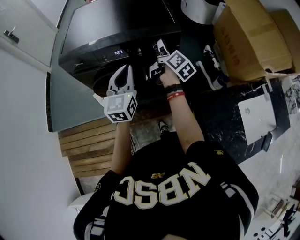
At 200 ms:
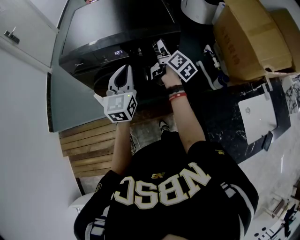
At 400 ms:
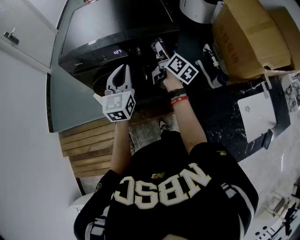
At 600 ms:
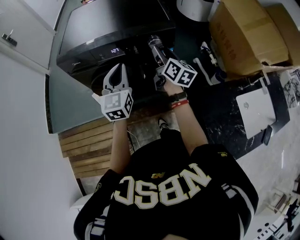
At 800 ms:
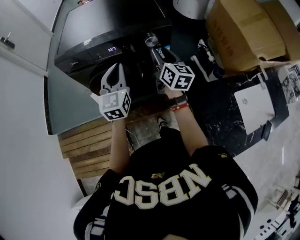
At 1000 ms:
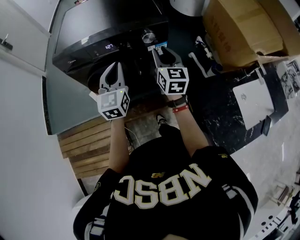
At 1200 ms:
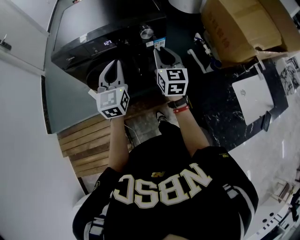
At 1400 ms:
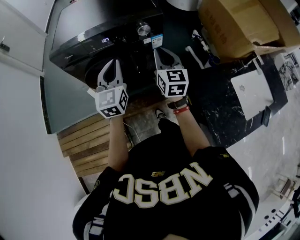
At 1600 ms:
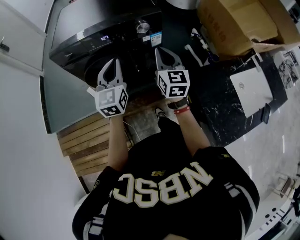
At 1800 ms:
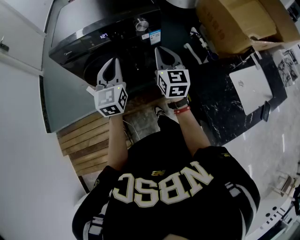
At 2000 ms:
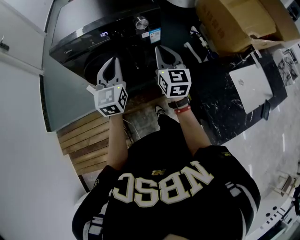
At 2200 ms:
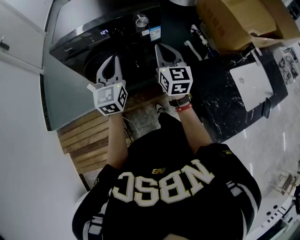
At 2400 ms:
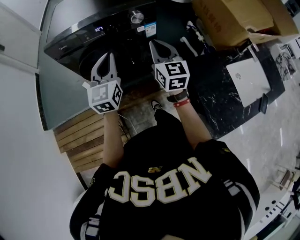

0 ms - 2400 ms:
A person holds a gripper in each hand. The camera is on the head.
0 ms - 1200 ms: The right gripper heads backward, covering some 15 cm, twists roughly 60 degrees counterclockwise, seen from behind, and closes up.
1200 ms - 2400 ms: The right gripper goes about 5 cm backward.

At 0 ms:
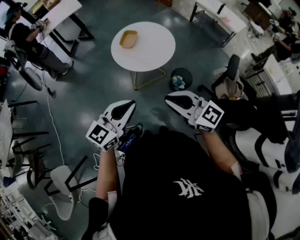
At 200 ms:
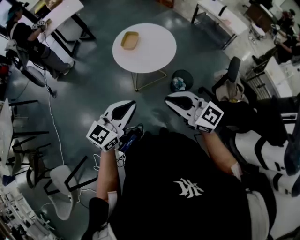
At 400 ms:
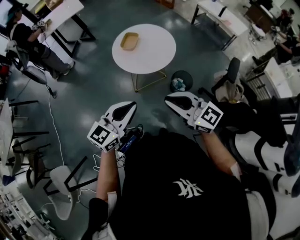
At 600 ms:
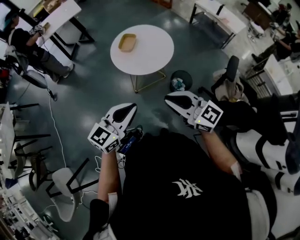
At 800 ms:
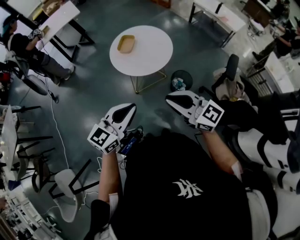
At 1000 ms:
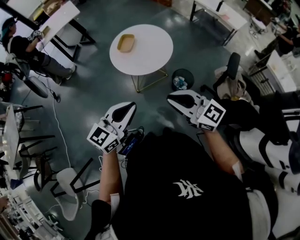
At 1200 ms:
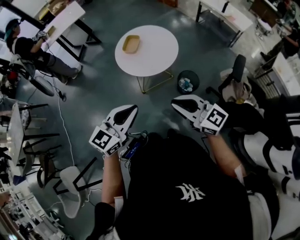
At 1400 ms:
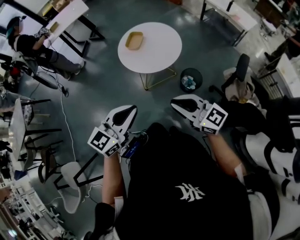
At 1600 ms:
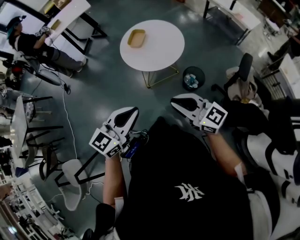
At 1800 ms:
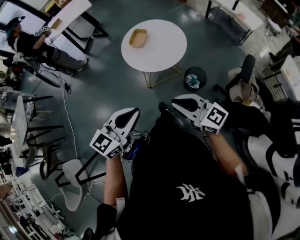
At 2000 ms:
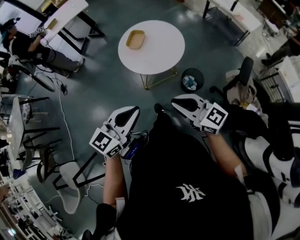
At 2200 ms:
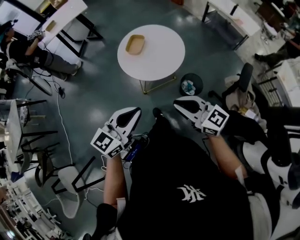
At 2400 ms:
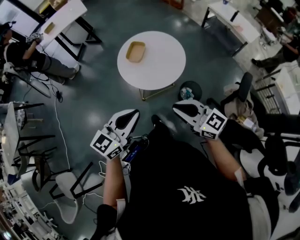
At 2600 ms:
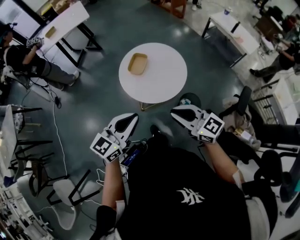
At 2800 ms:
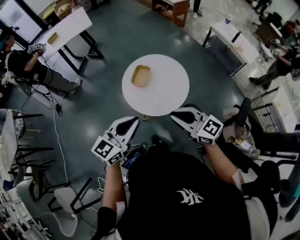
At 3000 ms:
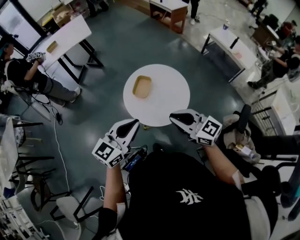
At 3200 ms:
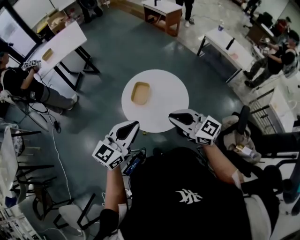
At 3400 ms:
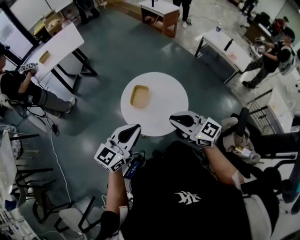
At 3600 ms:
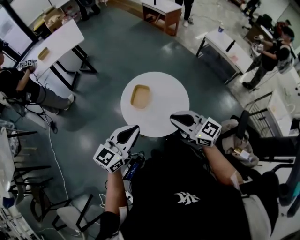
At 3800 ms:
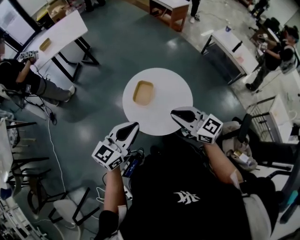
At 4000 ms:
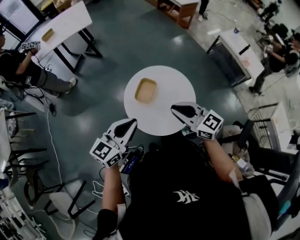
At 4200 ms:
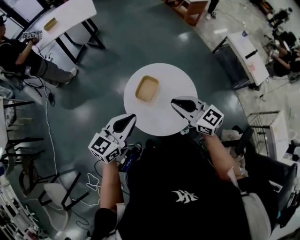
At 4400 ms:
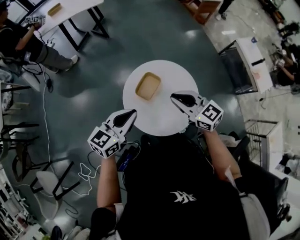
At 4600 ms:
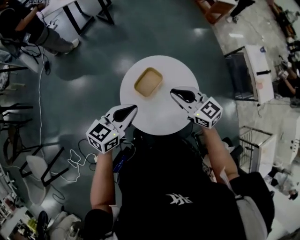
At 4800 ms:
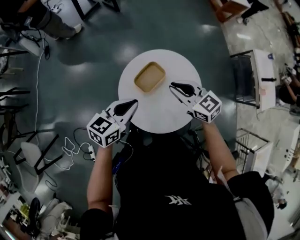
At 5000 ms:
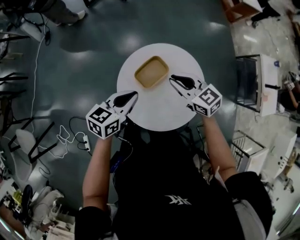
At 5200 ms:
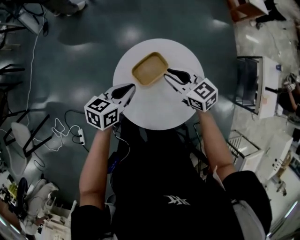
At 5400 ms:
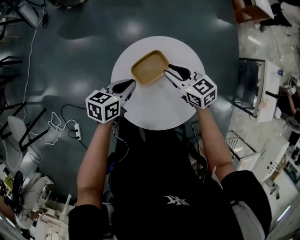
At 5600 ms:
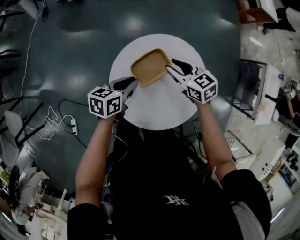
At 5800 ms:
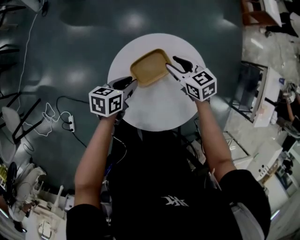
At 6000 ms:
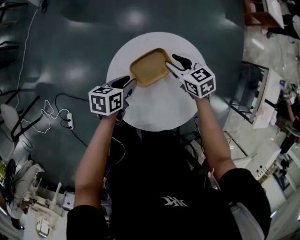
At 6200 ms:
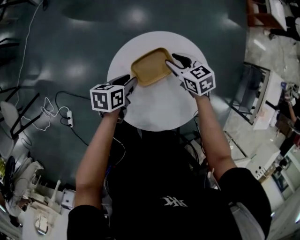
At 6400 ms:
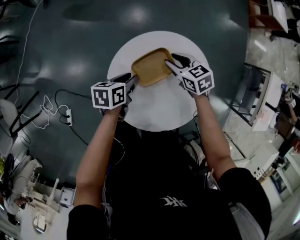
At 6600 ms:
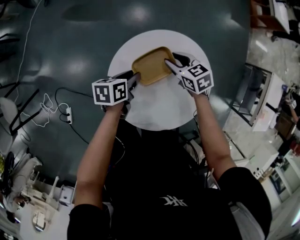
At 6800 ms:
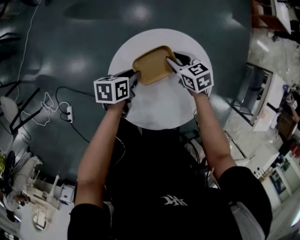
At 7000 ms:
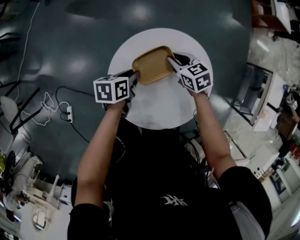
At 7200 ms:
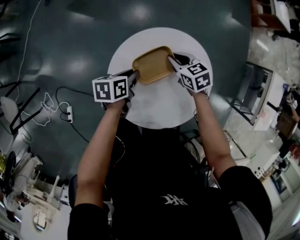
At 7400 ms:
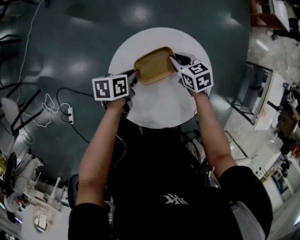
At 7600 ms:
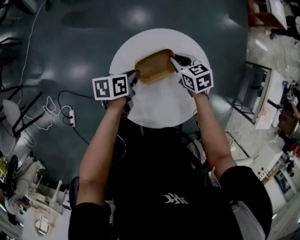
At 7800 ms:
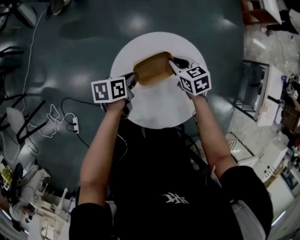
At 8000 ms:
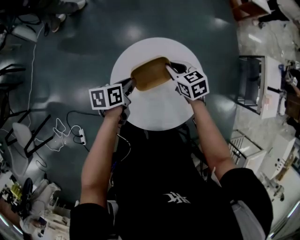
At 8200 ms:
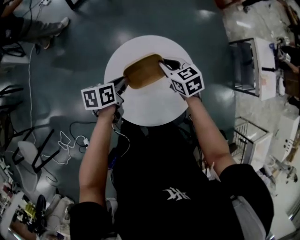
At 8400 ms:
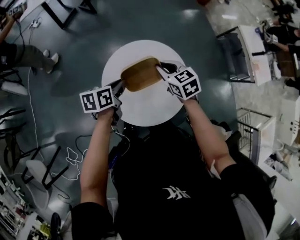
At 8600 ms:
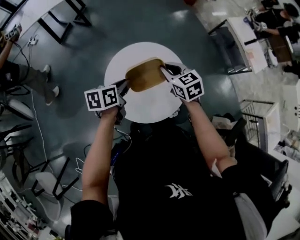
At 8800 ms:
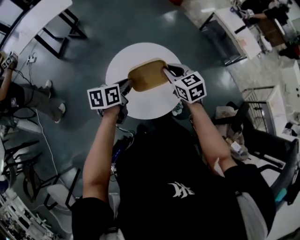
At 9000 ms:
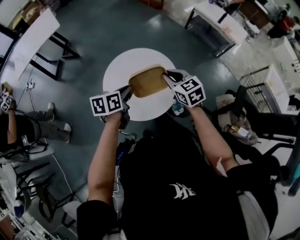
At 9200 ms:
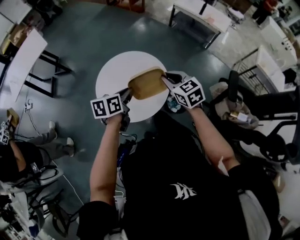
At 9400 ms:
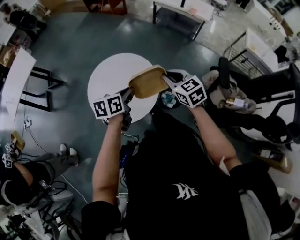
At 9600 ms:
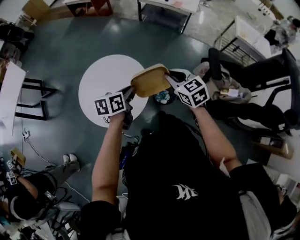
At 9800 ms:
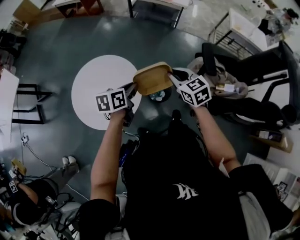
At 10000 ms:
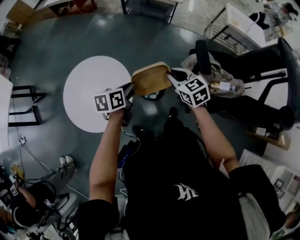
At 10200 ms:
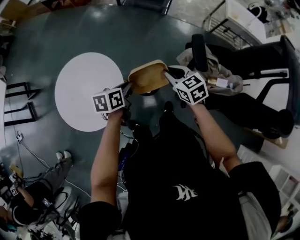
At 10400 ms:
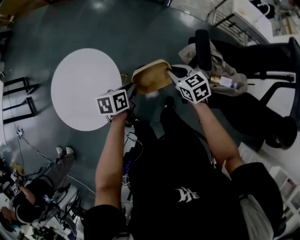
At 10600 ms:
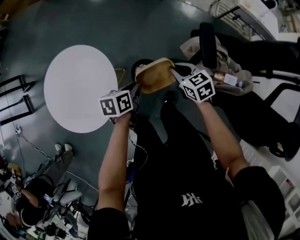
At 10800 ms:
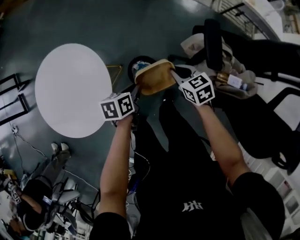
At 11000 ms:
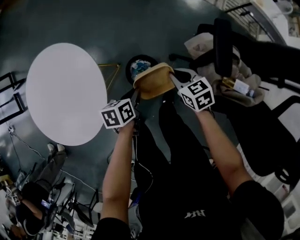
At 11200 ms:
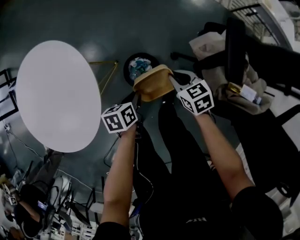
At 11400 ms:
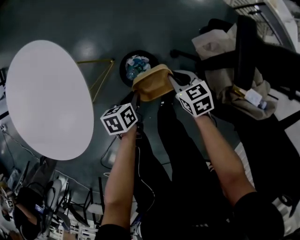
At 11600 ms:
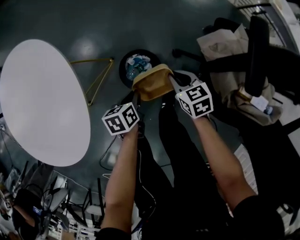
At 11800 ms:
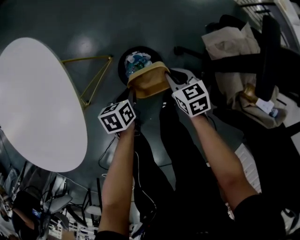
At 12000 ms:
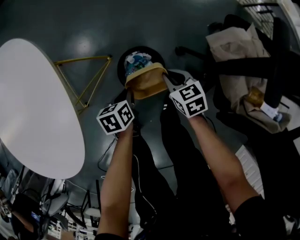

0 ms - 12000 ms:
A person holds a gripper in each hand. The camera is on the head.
0 ms - 1600 ms: The grippers make only small movements.
1600 ms - 3000 ms: The two grippers go approximately 25 cm forward.
3000 ms - 4400 ms: The left gripper travels forward and downward by some 15 cm, and turns by approximately 20 degrees. Meanwhile the right gripper moves forward, roughly 20 cm.
4400 ms - 6000 ms: The right gripper goes roughly 30 cm downward and forward, turns by some 30 degrees, and opens up. The left gripper heads downward, covering approximately 25 cm, angles its fingers downward, by approximately 30 degrees, and opens up.
6000 ms - 7600 ms: The right gripper closes its fingers; the left gripper closes up.
7600 ms - 9000 ms: Both grippers travel together upward, roughly 20 cm. The right gripper changes its angle by roughly 50 degrees; the left gripper rolls clockwise, seen from behind, by some 40 degrees.
9000 ms - 10400 ms: The right gripper shifts by about 35 cm, and changes its angle by approximately 30 degrees. The left gripper moves some 35 cm, and turns by approximately 30 degrees.
10400 ms - 12000 ms: The two grippers go roughly 40 cm downward. The left gripper changes its angle by roughly 20 degrees.

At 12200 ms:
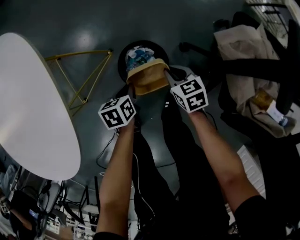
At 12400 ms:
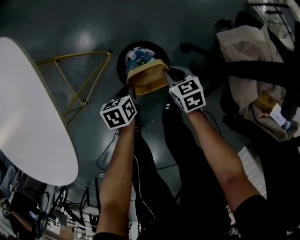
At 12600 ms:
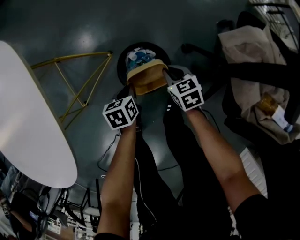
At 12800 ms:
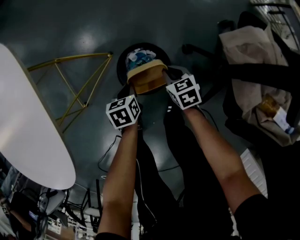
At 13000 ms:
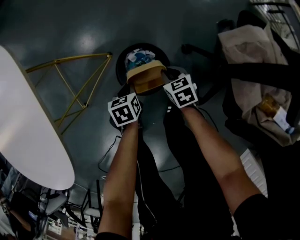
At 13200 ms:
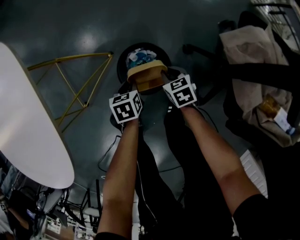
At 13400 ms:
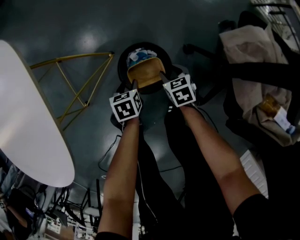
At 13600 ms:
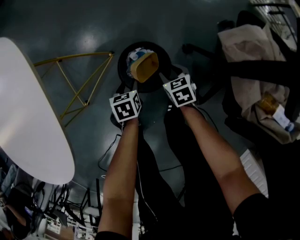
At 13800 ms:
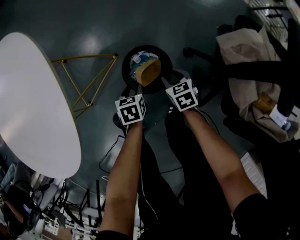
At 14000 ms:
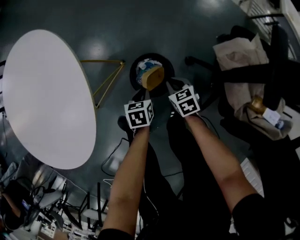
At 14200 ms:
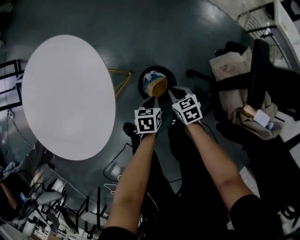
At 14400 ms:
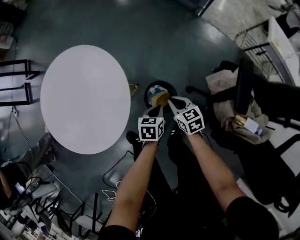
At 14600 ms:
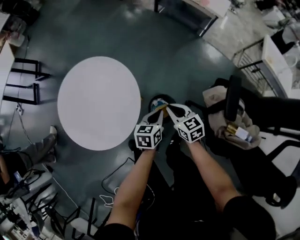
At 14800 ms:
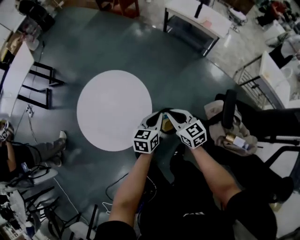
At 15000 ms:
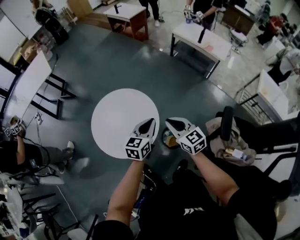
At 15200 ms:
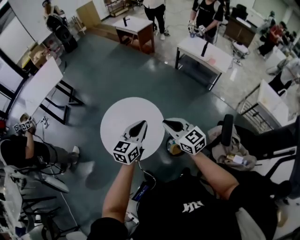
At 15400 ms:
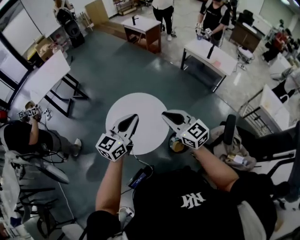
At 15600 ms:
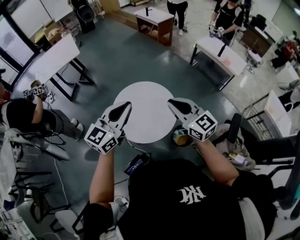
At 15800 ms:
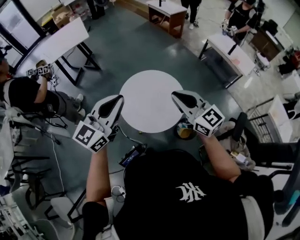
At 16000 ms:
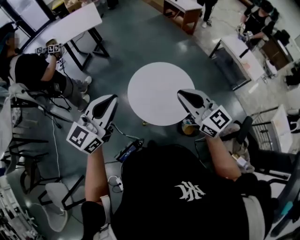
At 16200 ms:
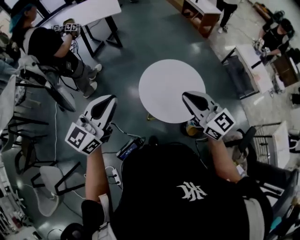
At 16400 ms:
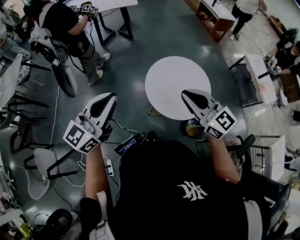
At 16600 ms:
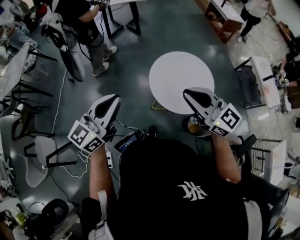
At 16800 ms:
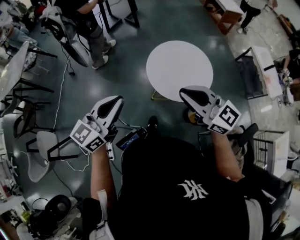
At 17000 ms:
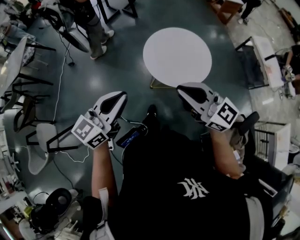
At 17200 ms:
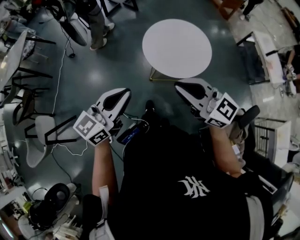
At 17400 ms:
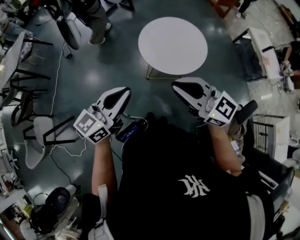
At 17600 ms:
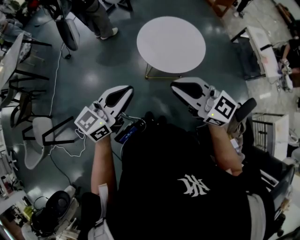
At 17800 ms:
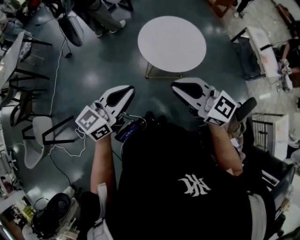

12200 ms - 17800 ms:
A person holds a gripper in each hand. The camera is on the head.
12200 ms - 13600 ms: Both grippers move downward, roughly 10 cm. The right gripper opens its fingers. Meanwhile the left gripper opens.
13600 ms - 15000 ms: Both grippers move upward, some 60 cm. The left gripper tilts its fingers some 50 degrees upward, and closes its fingers. The right gripper angles its fingers upward, by about 40 degrees, and closes its fingers.
15000 ms - 16400 ms: The left gripper moves roughly 50 cm, and rotates some 40 degrees, while the right gripper changes place by approximately 35 cm, and turns by some 40 degrees.
16400 ms - 17800 ms: The grippers both shift backward by approximately 20 cm.

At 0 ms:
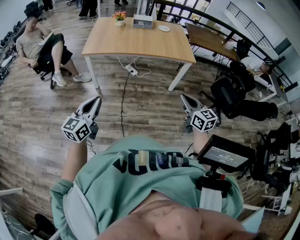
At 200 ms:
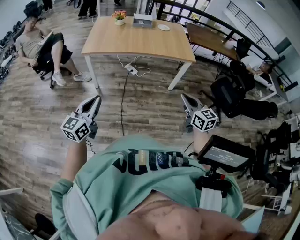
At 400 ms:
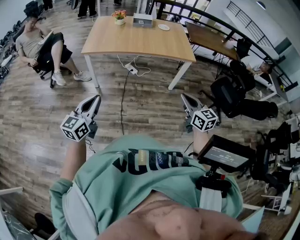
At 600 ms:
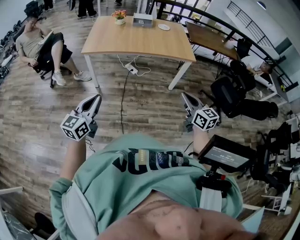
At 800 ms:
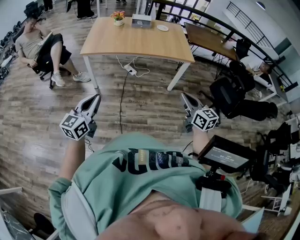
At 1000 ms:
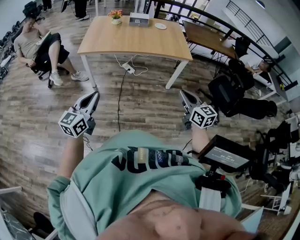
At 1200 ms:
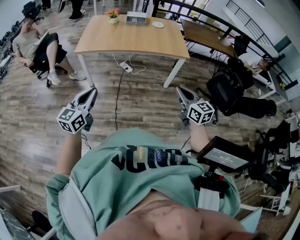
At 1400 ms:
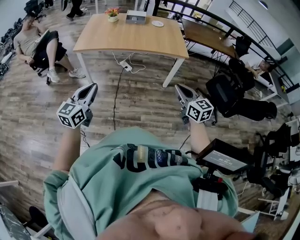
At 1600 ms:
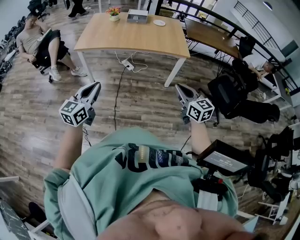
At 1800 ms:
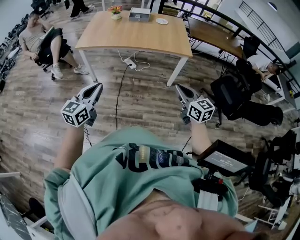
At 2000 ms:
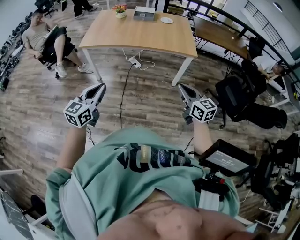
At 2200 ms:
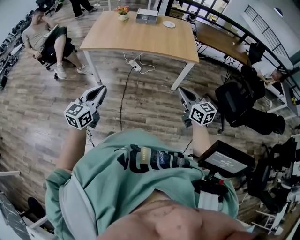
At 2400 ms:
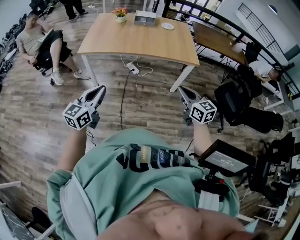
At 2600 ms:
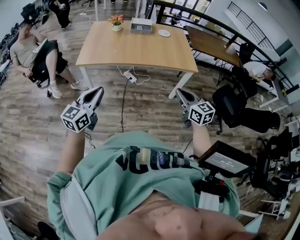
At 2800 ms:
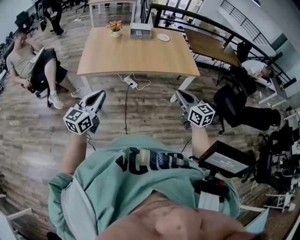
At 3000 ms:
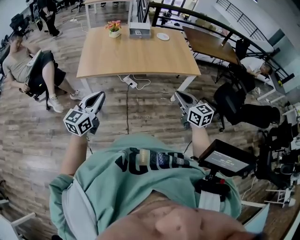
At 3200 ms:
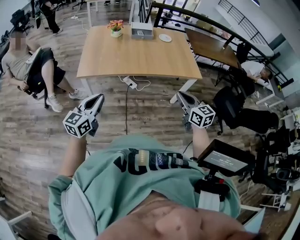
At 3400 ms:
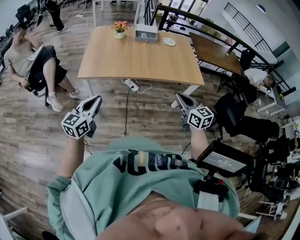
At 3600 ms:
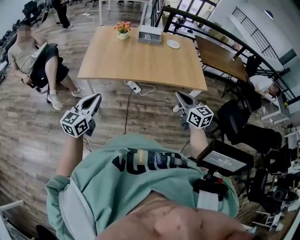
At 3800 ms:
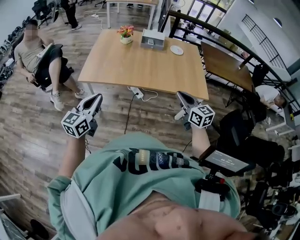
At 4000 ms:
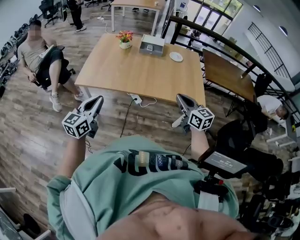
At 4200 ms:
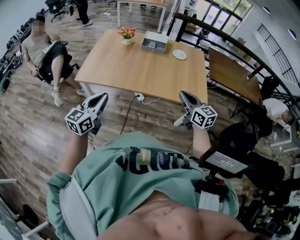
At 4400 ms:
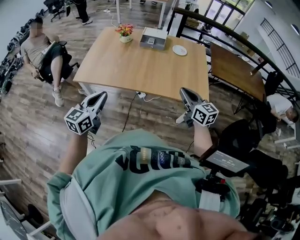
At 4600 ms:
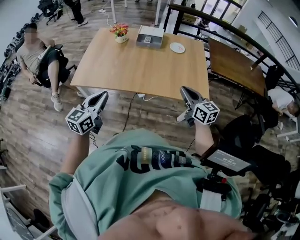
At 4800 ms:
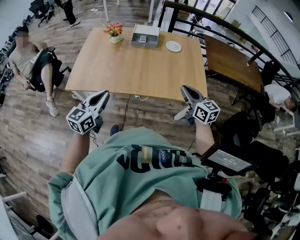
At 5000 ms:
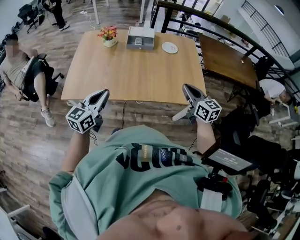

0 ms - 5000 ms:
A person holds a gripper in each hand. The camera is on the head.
0 ms - 1600 ms: The two grippers go about 15 cm to the right.
1600 ms - 3400 ms: Both grippers move forward and to the left, roughly 35 cm.
3400 ms - 5000 ms: The two grippers go roughly 35 cm forward and to the right.
